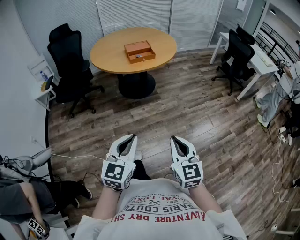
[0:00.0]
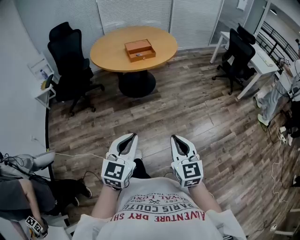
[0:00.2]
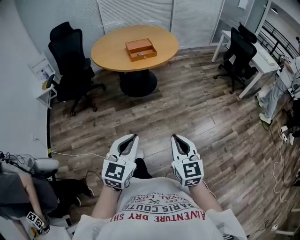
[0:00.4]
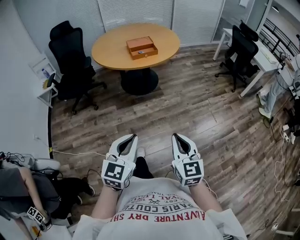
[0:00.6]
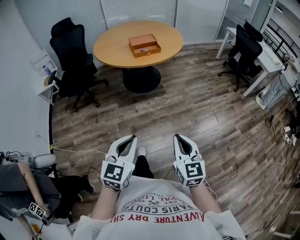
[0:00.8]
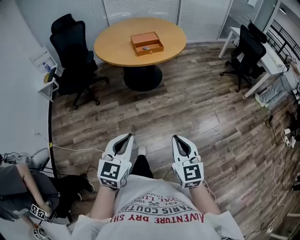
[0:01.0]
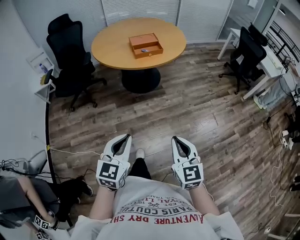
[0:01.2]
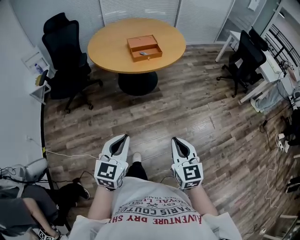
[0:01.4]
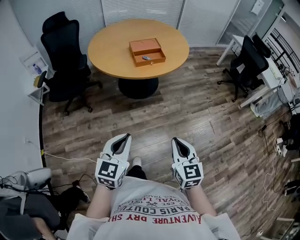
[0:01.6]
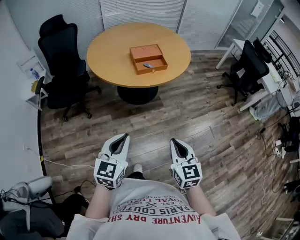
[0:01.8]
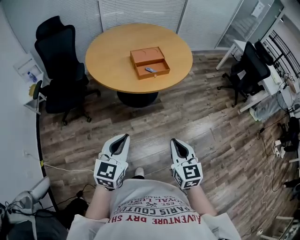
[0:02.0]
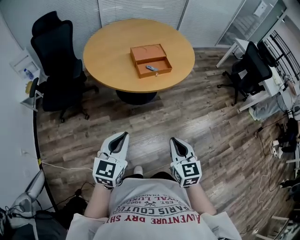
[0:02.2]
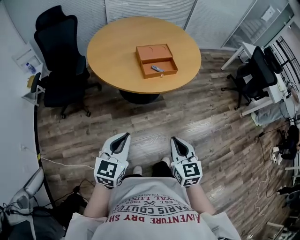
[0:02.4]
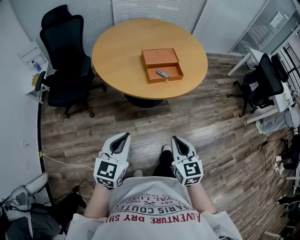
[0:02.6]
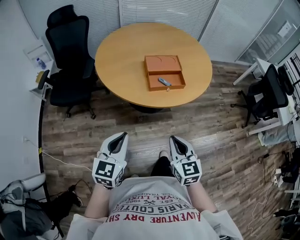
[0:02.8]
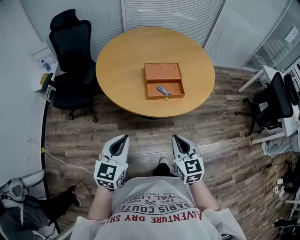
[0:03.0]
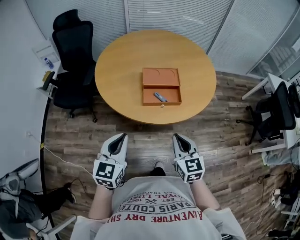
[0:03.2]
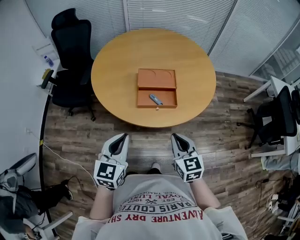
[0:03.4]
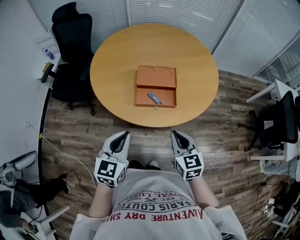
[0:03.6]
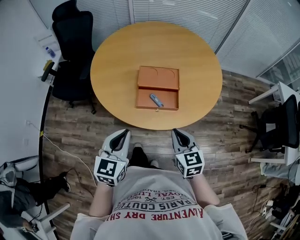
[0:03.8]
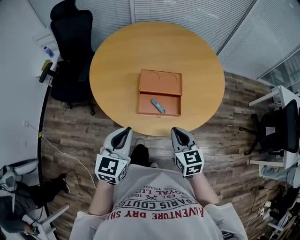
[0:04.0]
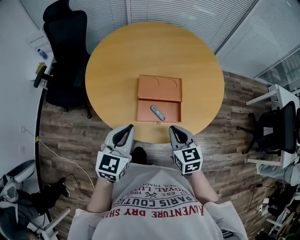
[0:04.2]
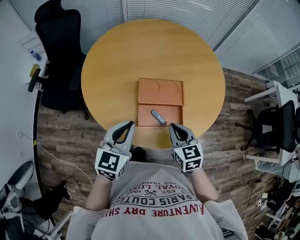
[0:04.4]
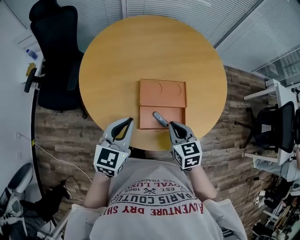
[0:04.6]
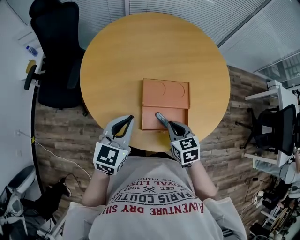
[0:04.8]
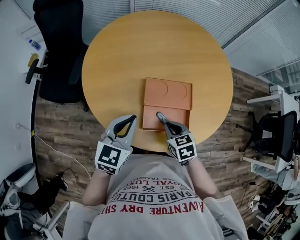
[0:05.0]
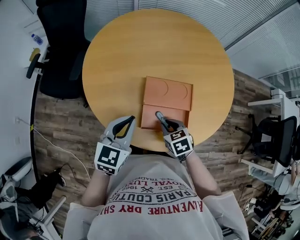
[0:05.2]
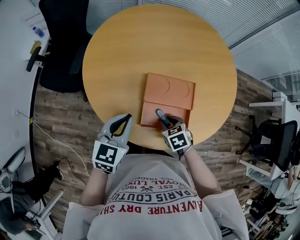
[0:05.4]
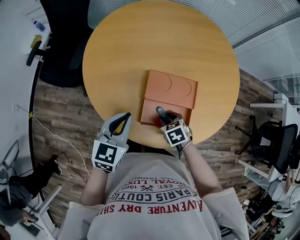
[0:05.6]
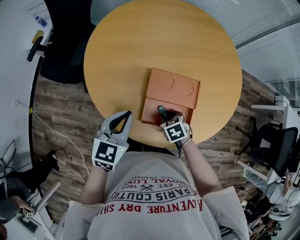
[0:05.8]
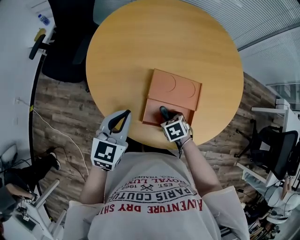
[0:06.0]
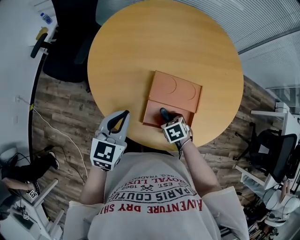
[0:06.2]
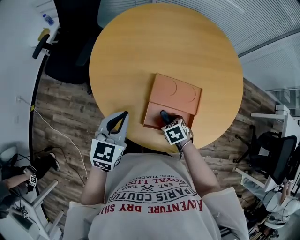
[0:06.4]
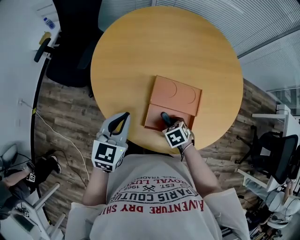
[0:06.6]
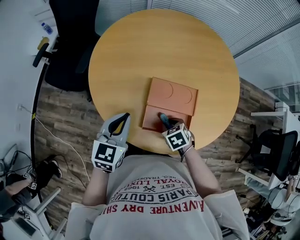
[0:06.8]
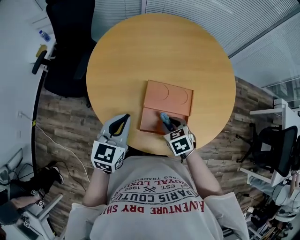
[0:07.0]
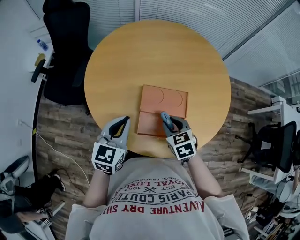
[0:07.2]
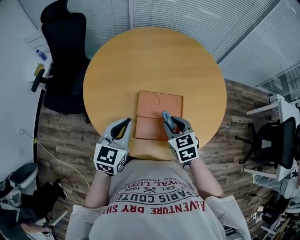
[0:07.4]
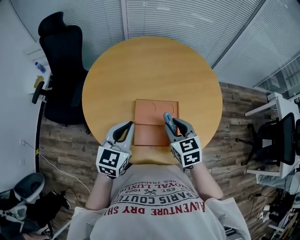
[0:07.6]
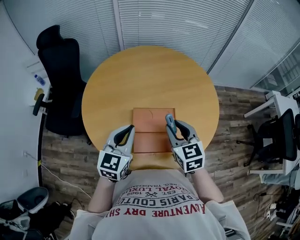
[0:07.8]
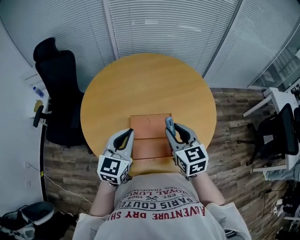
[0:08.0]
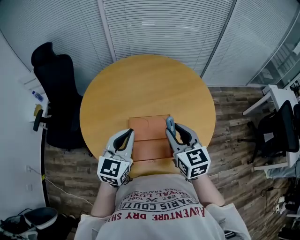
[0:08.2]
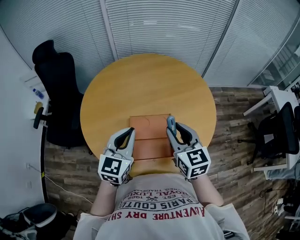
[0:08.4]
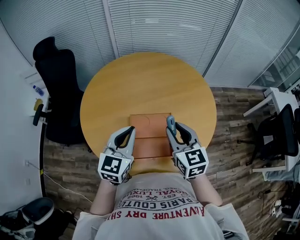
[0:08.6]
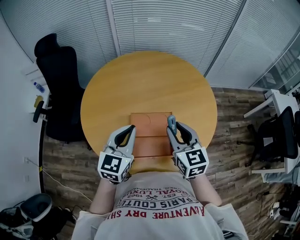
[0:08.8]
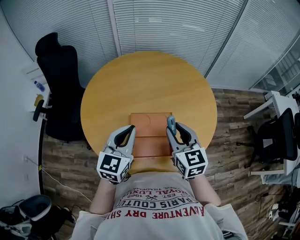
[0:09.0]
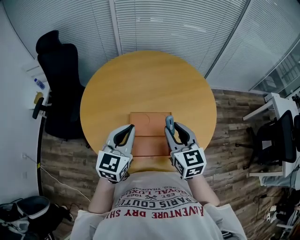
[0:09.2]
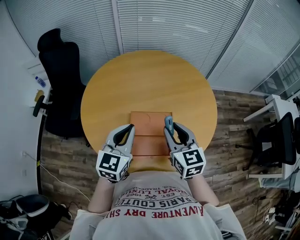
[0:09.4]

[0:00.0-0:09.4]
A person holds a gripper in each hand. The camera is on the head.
0:00.0 to 0:01.6: The right gripper heads forward, covering approximately 20 cm, while the left gripper goes some 20 cm forward and to the left.
0:01.6 to 0:03.2: Both grippers travel together forward, approximately 40 cm.
0:03.2 to 0:04.8: The left gripper heads forward, covering roughly 30 cm, while the right gripper shifts about 30 cm forward and downward, and changes its angle by roughly 20 degrees.
0:04.8 to 0:06.2: The right gripper shifts approximately 15 cm downward, rotates some 30 degrees, and opens.
0:06.2 to 0:07.8: The right gripper travels upward by some 25 cm, and angles its fingers upward, by approximately 50 degrees, while the left gripper heads upward and to the right, covering roughly 15 cm.
0:07.8 to 0:09.4: The grippers stay close to where they were, moving slightly.

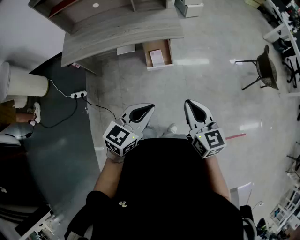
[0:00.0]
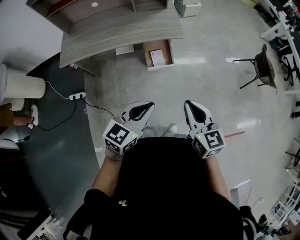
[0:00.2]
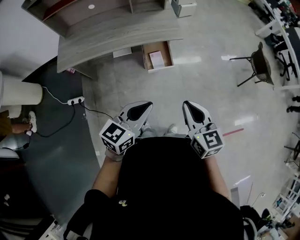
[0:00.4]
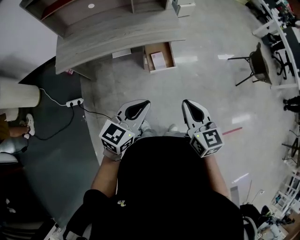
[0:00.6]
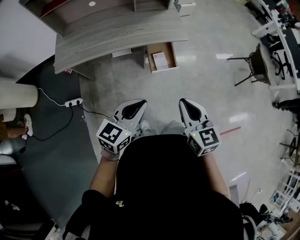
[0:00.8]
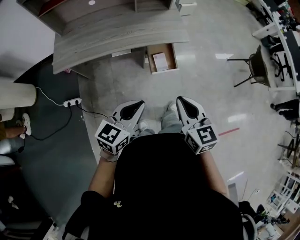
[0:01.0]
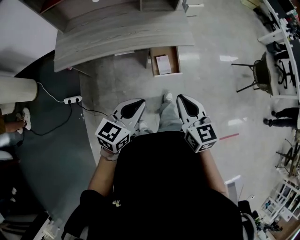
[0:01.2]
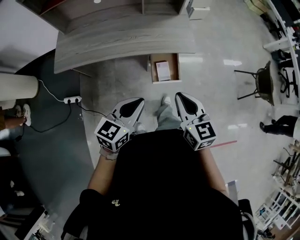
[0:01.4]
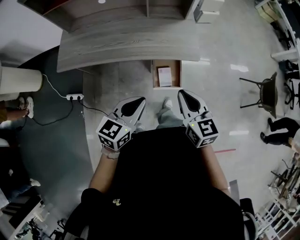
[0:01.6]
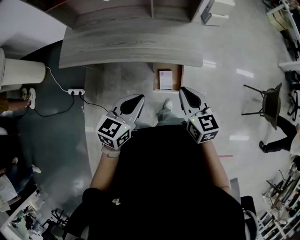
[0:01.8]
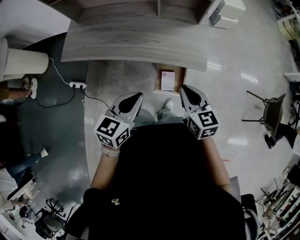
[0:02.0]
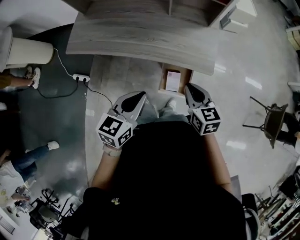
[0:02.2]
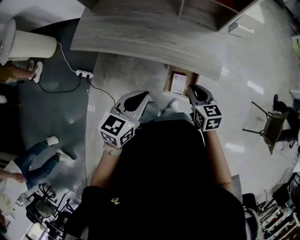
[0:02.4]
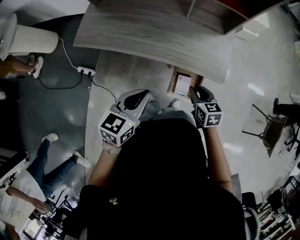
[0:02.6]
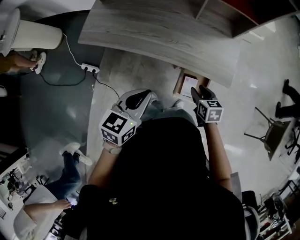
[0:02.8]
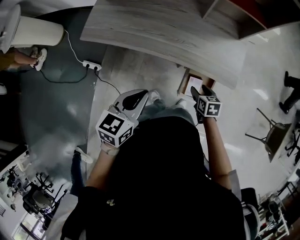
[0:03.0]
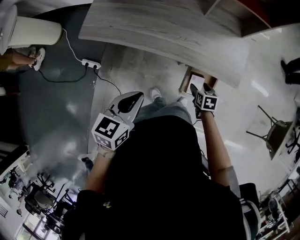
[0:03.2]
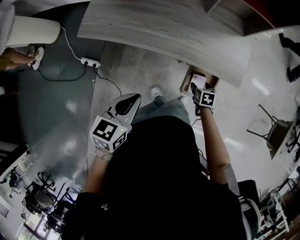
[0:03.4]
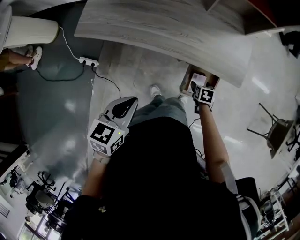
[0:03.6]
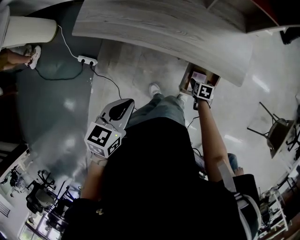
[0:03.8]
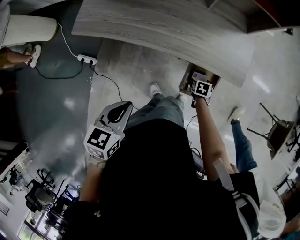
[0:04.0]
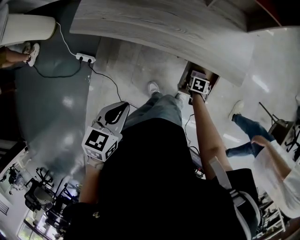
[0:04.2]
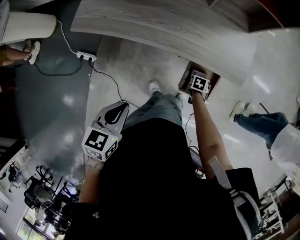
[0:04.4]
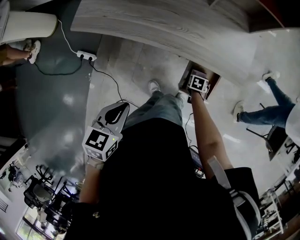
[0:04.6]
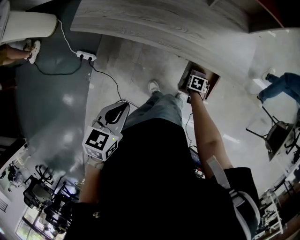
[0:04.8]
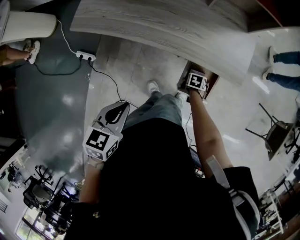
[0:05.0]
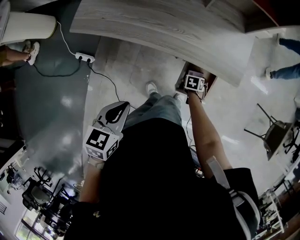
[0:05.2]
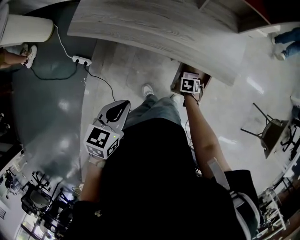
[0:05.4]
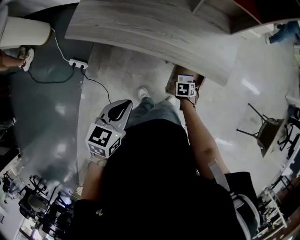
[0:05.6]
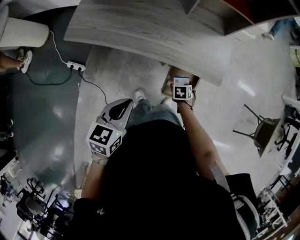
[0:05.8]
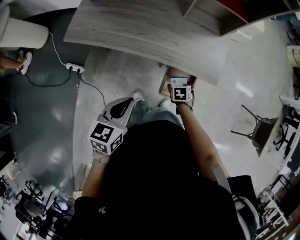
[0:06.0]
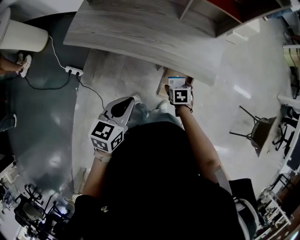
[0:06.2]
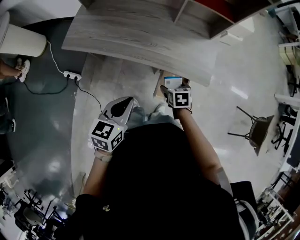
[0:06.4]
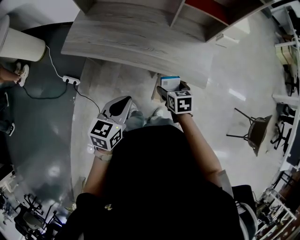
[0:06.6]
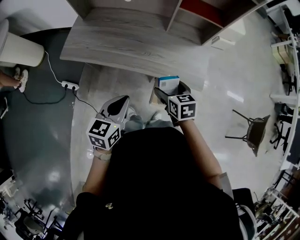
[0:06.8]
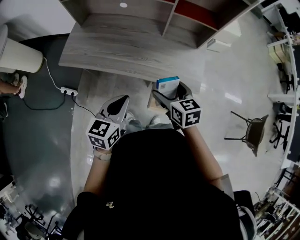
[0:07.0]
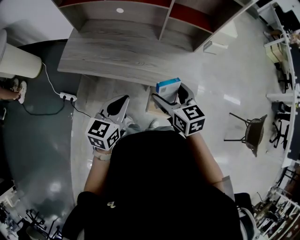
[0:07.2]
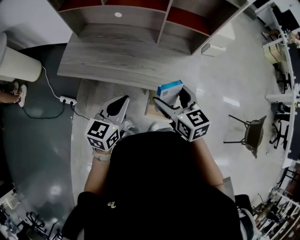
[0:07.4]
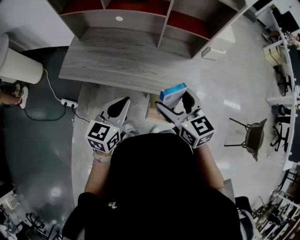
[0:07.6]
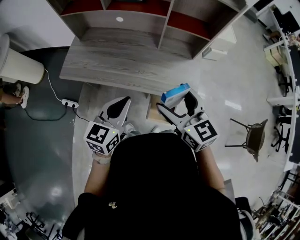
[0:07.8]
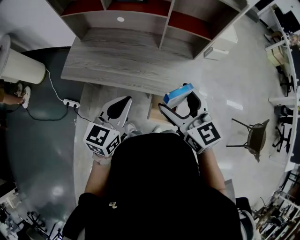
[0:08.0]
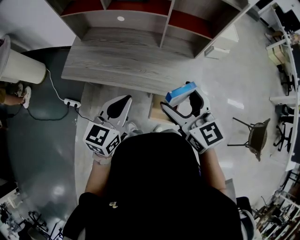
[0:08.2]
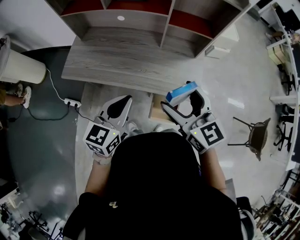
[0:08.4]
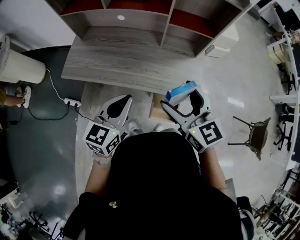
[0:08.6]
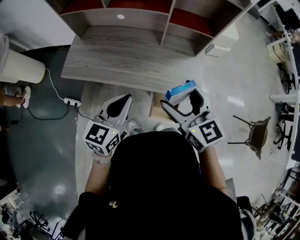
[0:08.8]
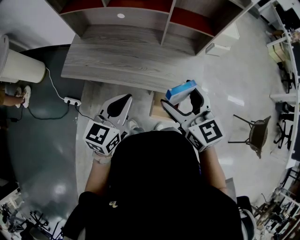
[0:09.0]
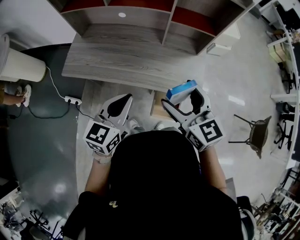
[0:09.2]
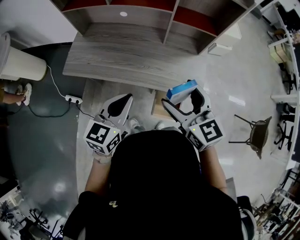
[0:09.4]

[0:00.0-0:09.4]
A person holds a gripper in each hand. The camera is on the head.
0:00.0 to 0:01.6: The grippers both shift forward and to the left by some 25 cm.
0:01.6 to 0:03.2: The right gripper goes some 35 cm downward and forward, tilts its fingers approximately 40 degrees downward, and opens. The left gripper shifts approximately 15 cm to the left and forward, and swivels some 20 degrees.
0:03.2 to 0:04.8: The right gripper shifts about 15 cm downward, and rotates about 20 degrees; the left gripper shifts roughly 5 cm downward.
0:04.8 to 0:06.2: The left gripper ends up roughly 10 cm from where it was. The right gripper shifts about 20 cm upward, and turns by roughly 20 degrees.
0:06.2 to 0:07.8: The left gripper moves upward and forward, some 15 cm. Meanwhile the right gripper travels upward by roughly 40 cm, and angles its fingers upward, by roughly 50 degrees.
0:07.8 to 0:09.4: The grippers move only a little.

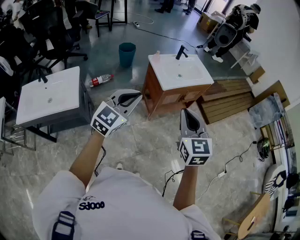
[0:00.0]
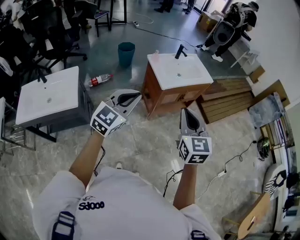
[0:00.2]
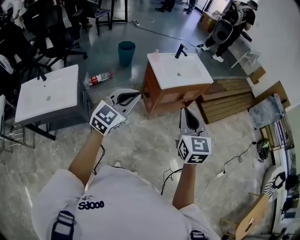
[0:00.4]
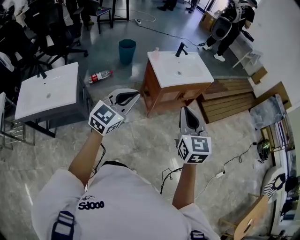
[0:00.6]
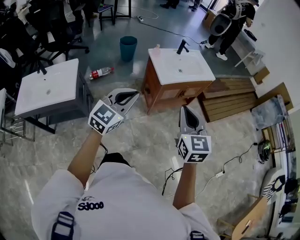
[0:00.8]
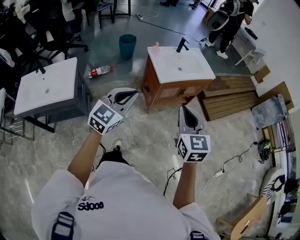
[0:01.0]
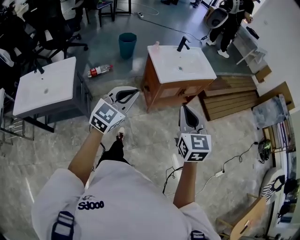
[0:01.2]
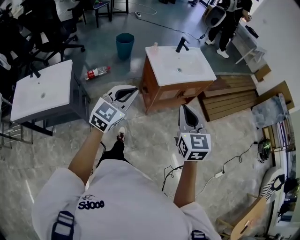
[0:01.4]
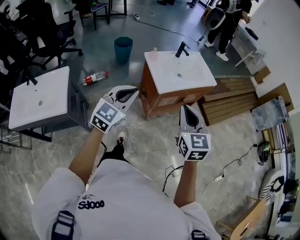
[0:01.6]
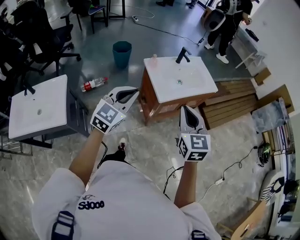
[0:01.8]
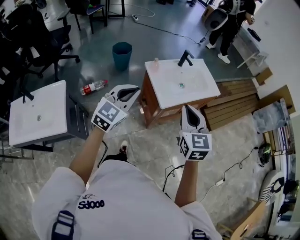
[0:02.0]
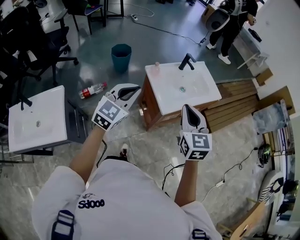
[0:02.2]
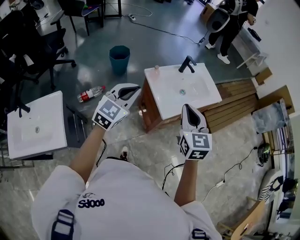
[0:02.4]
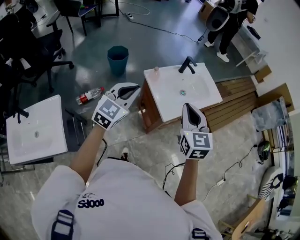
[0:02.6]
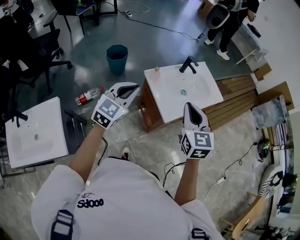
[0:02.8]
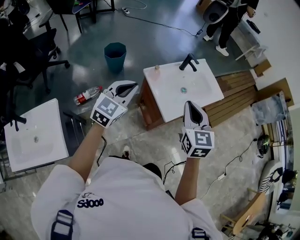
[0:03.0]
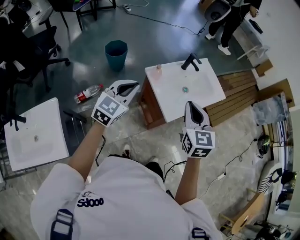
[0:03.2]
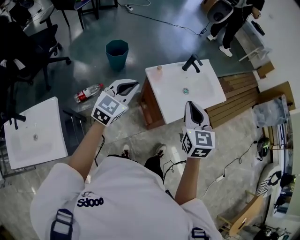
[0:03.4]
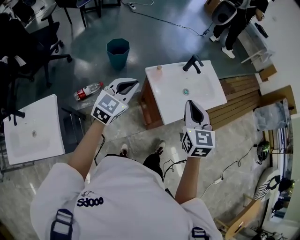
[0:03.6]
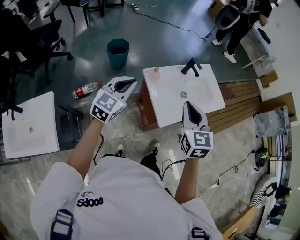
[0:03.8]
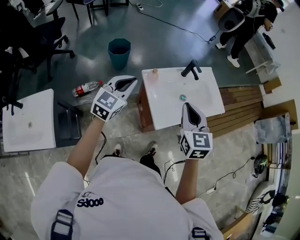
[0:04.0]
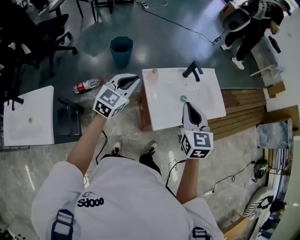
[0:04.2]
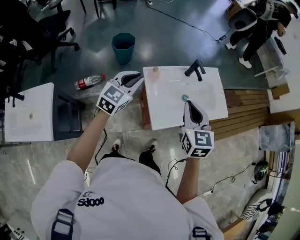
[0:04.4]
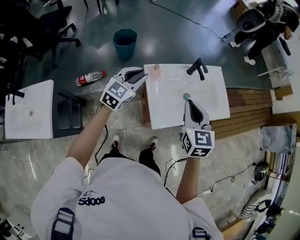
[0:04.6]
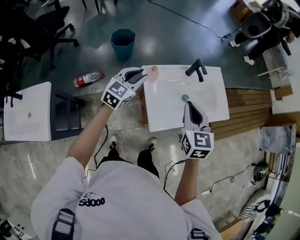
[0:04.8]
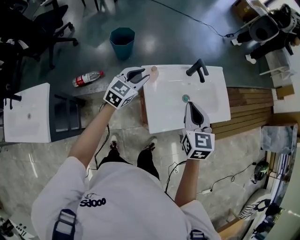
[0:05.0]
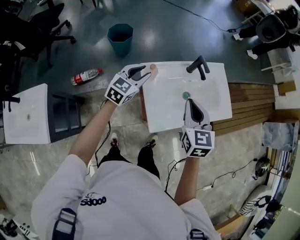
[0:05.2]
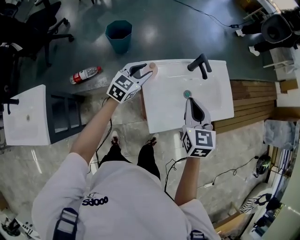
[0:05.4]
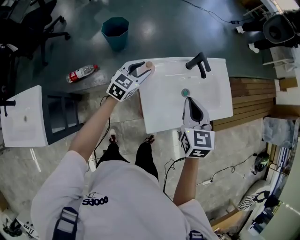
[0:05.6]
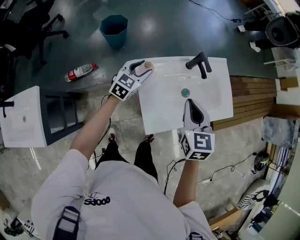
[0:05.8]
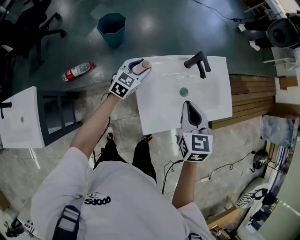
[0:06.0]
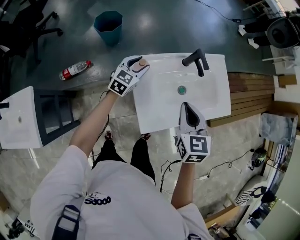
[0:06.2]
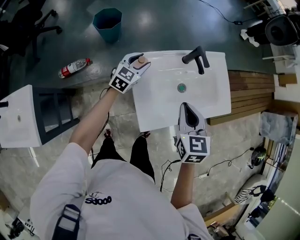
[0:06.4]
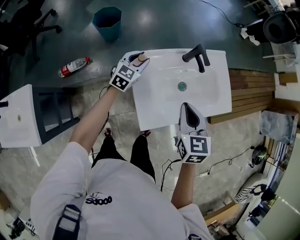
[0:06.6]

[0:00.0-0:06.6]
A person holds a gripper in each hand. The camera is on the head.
0:00.0 to 0:01.6: The left gripper is displaced forward and downward by approximately 15 cm. Meanwhile the right gripper moves forward, roughly 15 cm.
0:01.6 to 0:03.2: The two grippers go about 25 cm forward and to the left.
0:03.2 to 0:05.0: The left gripper travels forward, downward and to the right by approximately 20 cm, and opens up; the right gripper moves forward, to the right and downward, roughly 15 cm.
0:05.0 to 0:06.6: The right gripper heads downward, covering about 5 cm. The left gripper is displaced downward and forward by about 15 cm.
